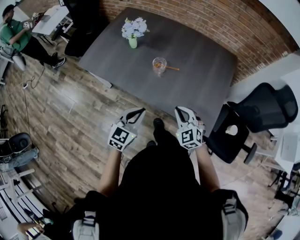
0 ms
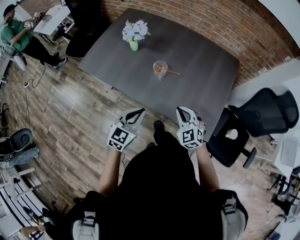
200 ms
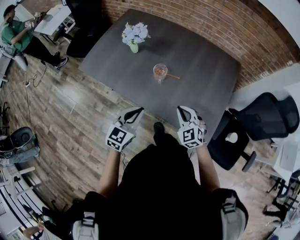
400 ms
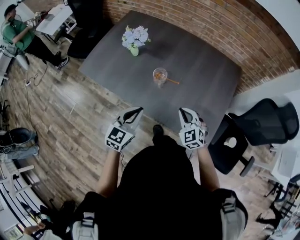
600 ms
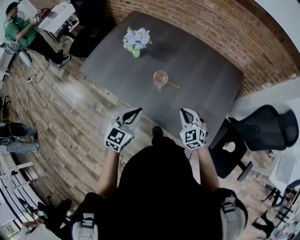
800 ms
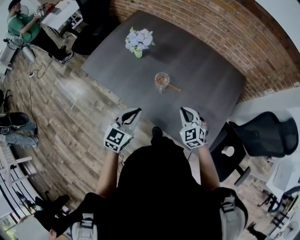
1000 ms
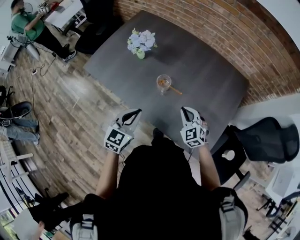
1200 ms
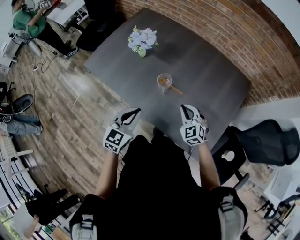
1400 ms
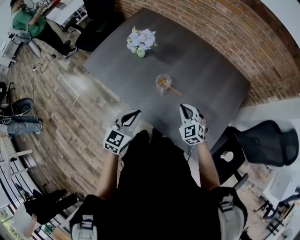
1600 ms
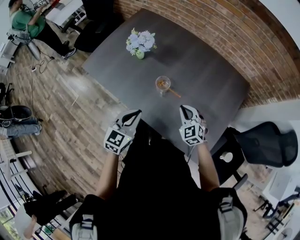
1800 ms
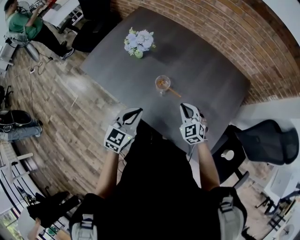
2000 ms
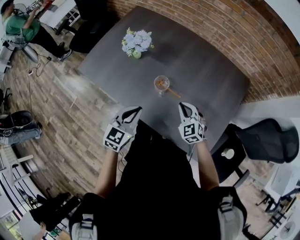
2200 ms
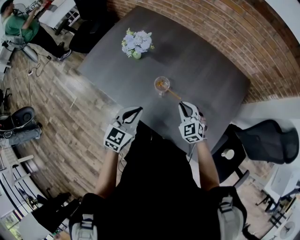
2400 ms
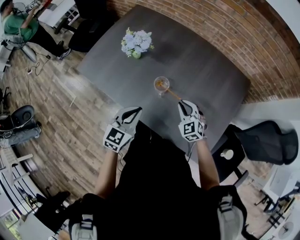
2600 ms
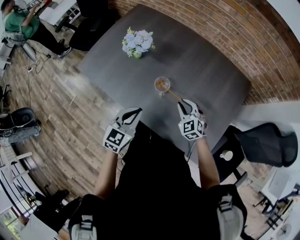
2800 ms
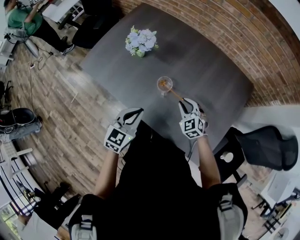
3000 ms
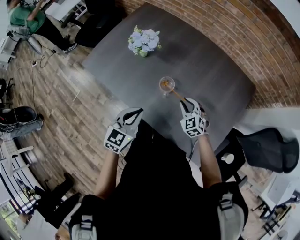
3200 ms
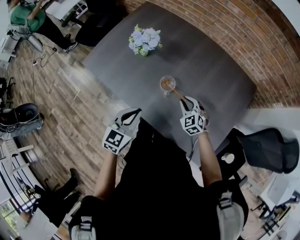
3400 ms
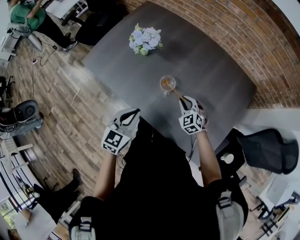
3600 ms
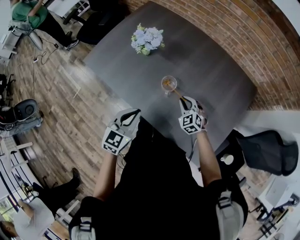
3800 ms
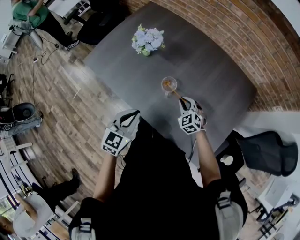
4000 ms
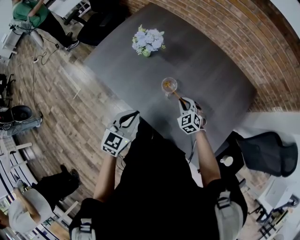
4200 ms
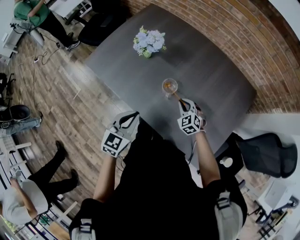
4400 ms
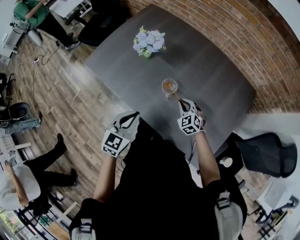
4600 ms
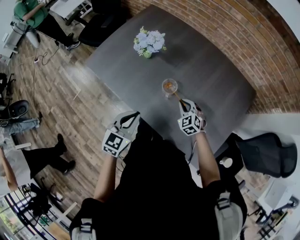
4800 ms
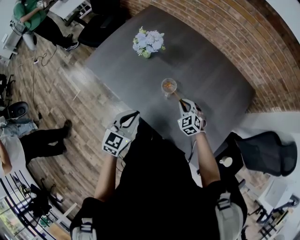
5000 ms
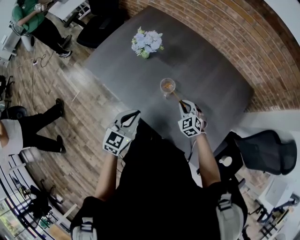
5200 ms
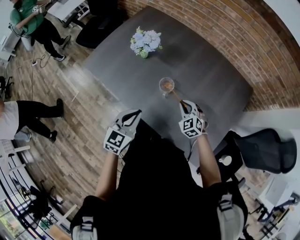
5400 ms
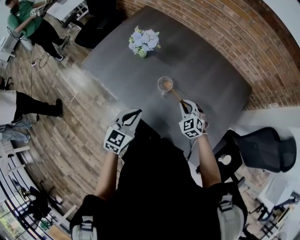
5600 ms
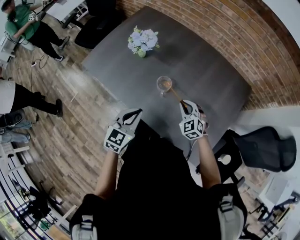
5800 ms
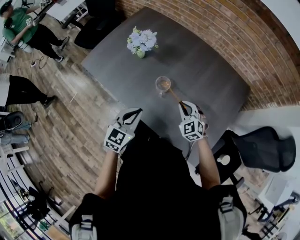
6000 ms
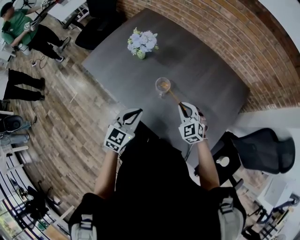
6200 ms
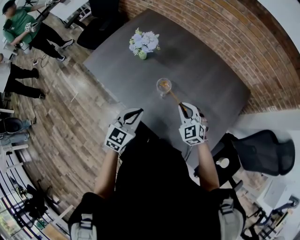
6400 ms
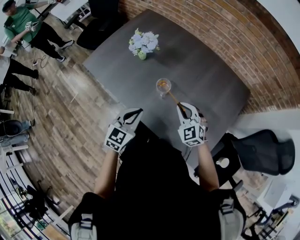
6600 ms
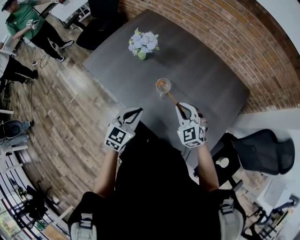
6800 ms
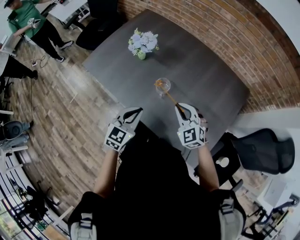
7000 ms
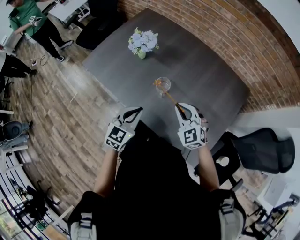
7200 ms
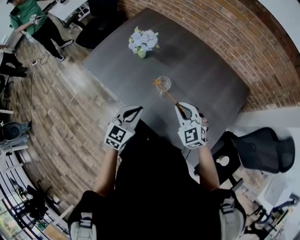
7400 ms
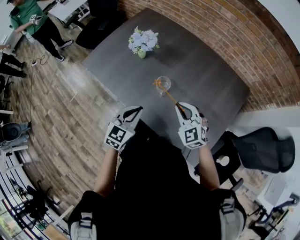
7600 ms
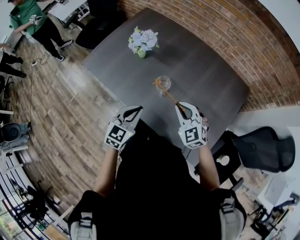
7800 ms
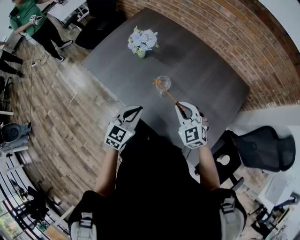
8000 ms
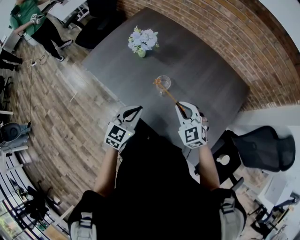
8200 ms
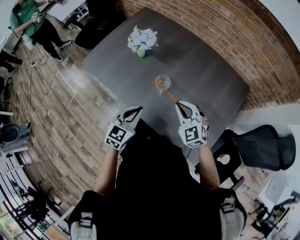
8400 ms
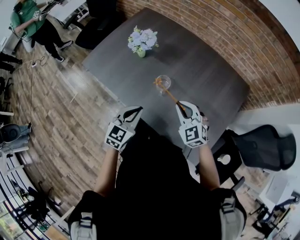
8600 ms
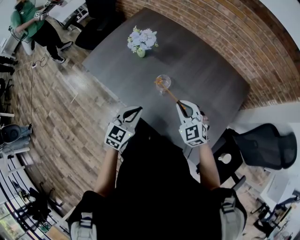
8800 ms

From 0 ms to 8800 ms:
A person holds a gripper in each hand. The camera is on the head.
From 0 ms to 1400 ms: The two grippers go some 15 cm forward.
From 1400 ms to 3000 ms: The right gripper goes approximately 5 cm forward. Meanwhile the left gripper moves approximately 5 cm.
From 3000 ms to 4400 ms: The right gripper shifts by some 5 cm.
From 4400 ms to 5800 ms: The right gripper is displaced upward by approximately 5 cm.
From 5800 ms to 7400 ms: The right gripper is displaced upward by some 10 cm.
From 7400 ms to 8800 ms: Both grippers stay put.

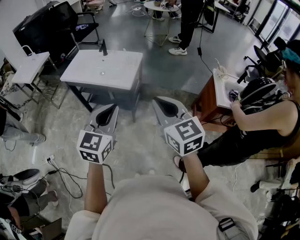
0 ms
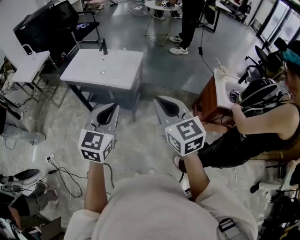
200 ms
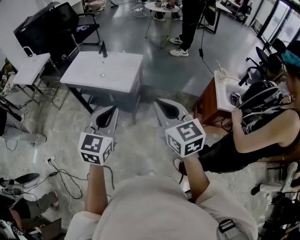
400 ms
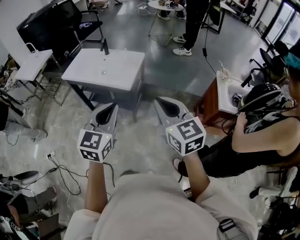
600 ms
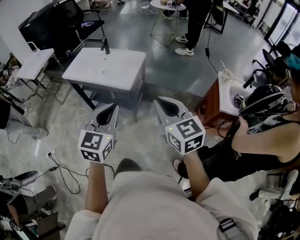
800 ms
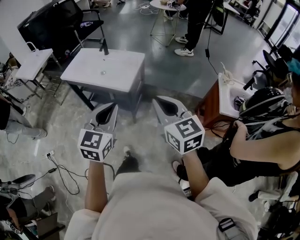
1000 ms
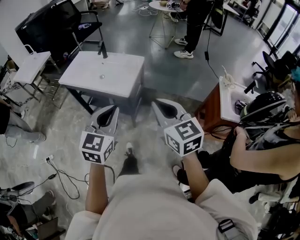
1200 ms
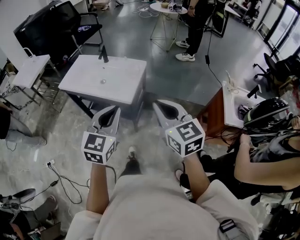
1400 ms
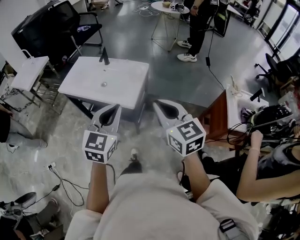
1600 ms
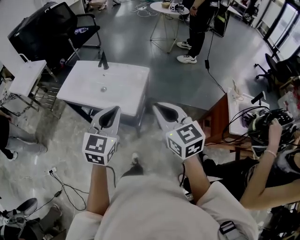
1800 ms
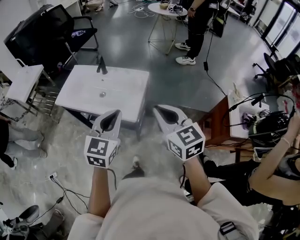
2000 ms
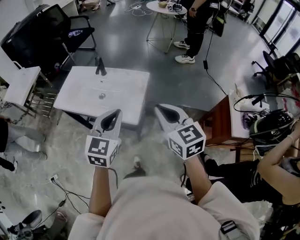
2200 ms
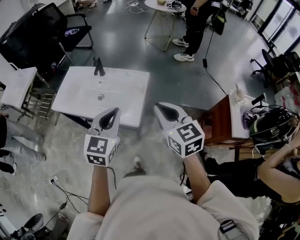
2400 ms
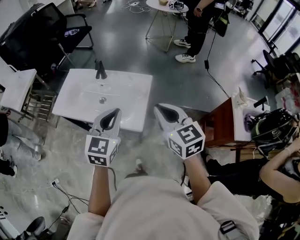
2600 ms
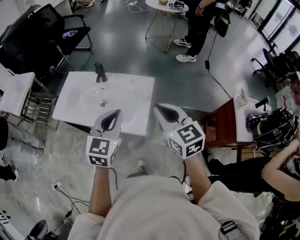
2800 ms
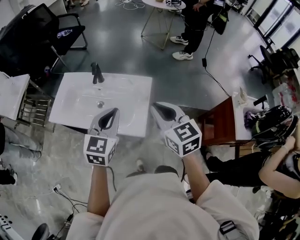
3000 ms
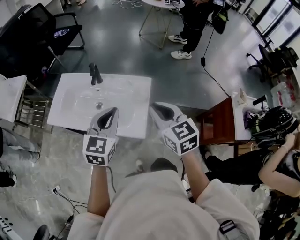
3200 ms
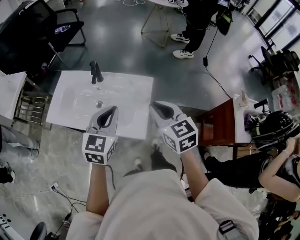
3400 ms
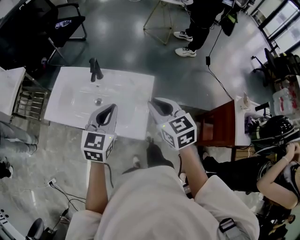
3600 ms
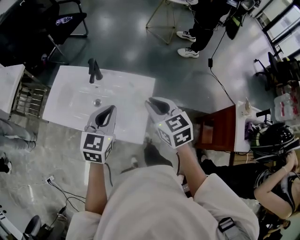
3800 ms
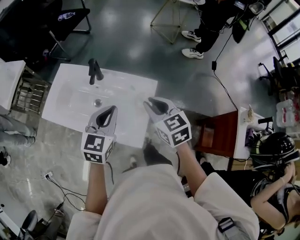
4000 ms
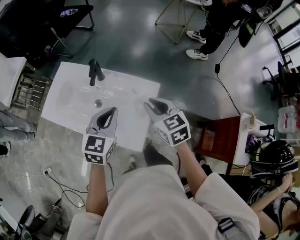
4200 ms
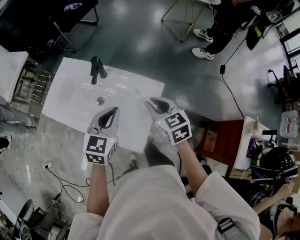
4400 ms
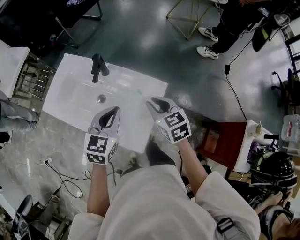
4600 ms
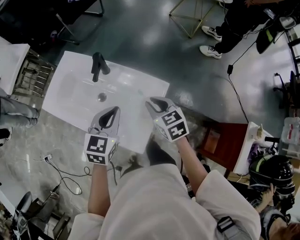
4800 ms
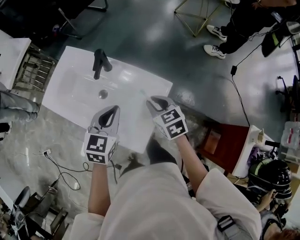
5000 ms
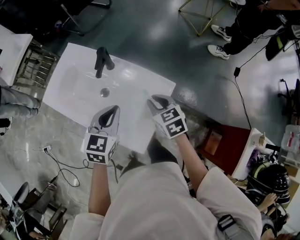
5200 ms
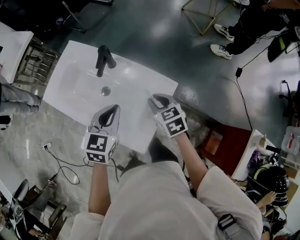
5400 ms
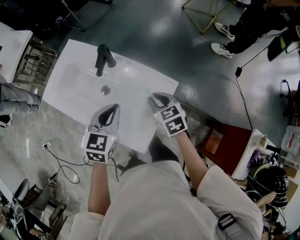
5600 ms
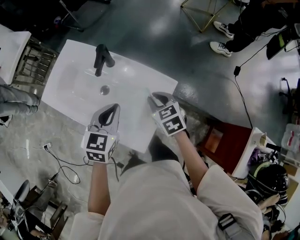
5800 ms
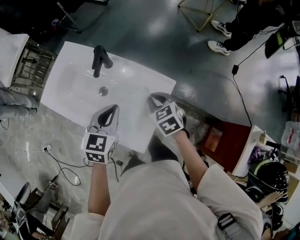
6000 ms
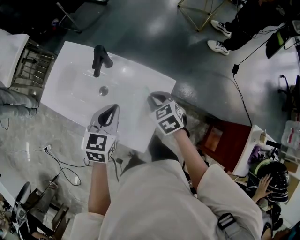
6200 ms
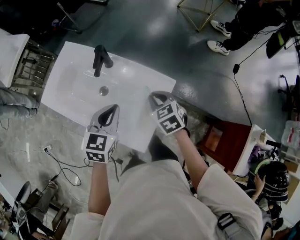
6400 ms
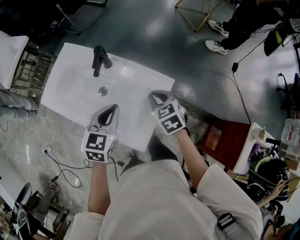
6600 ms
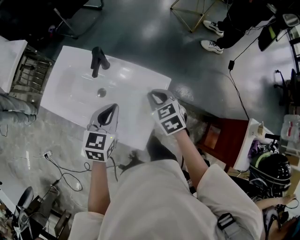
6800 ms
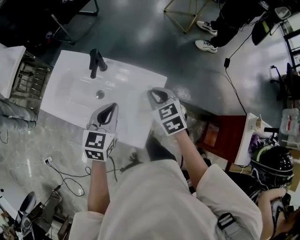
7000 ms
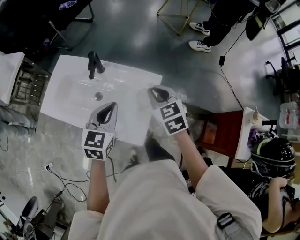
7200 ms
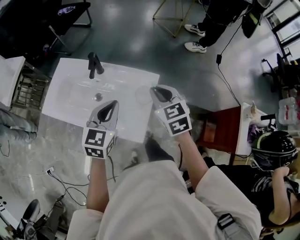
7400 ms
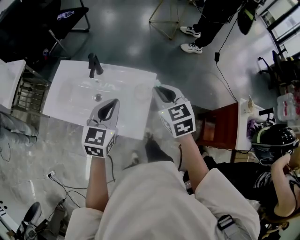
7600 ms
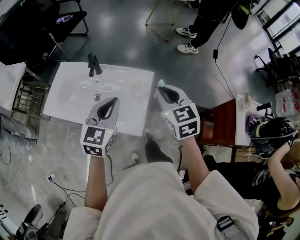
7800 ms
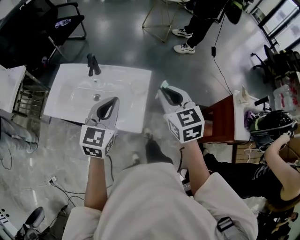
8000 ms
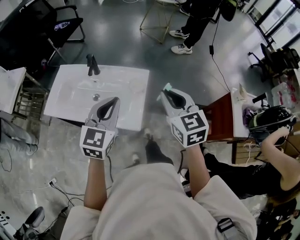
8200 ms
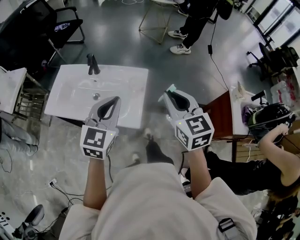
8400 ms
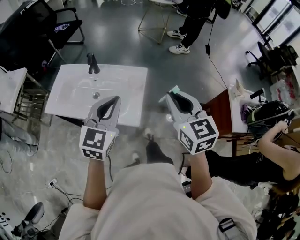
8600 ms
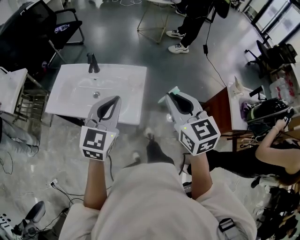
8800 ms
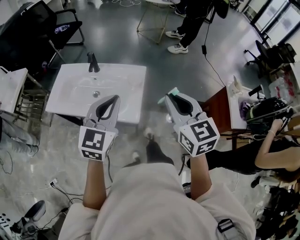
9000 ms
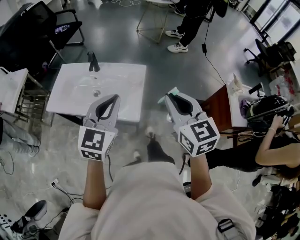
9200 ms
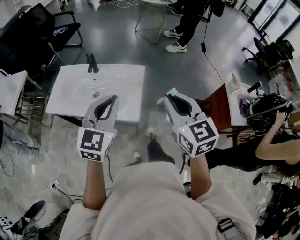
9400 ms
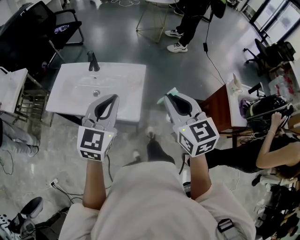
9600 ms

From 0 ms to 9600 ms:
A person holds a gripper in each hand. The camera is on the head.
From 0 ms to 1600 ms: The grippers both shift forward by approximately 20 cm.
From 1600 ms to 3200 ms: The two grippers go some 30 cm forward.
From 3200 ms to 4800 ms: Both grippers move forward and downward, about 25 cm. The right gripper swivels some 20 degrees.
From 4800 ms to 6400 ms: The right gripper moves downward, about 5 cm.
From 6400 ms to 8000 ms: The left gripper heads backward and upward, covering approximately 20 cm, and swivels approximately 30 degrees. Meanwhile the right gripper is displaced upward and backward by approximately 30 cm, and changes its angle by approximately 40 degrees.
From 8000 ms to 9600 ms: Both grippers move backward and upward, approximately 15 cm.

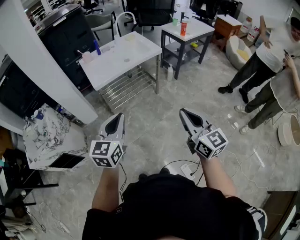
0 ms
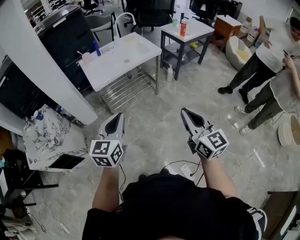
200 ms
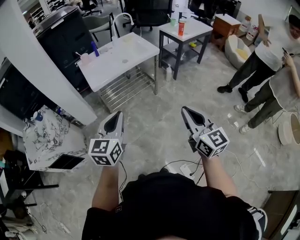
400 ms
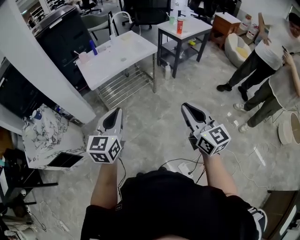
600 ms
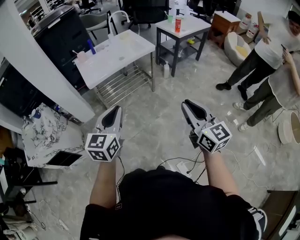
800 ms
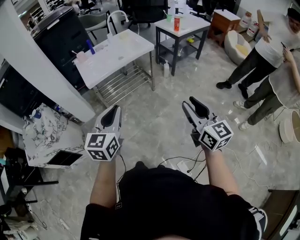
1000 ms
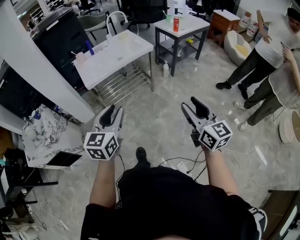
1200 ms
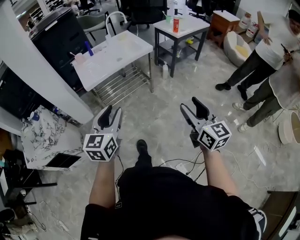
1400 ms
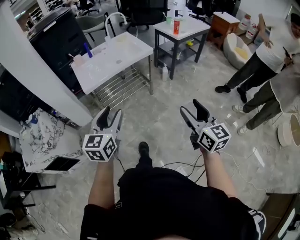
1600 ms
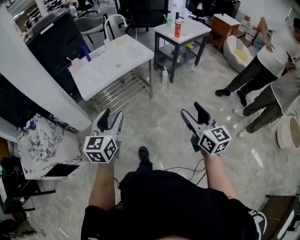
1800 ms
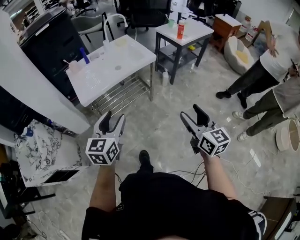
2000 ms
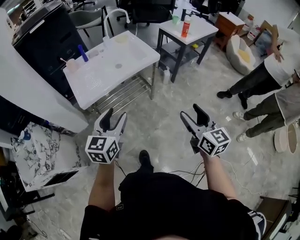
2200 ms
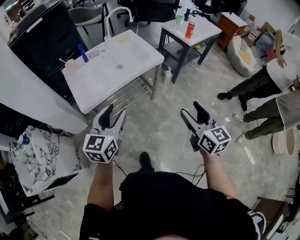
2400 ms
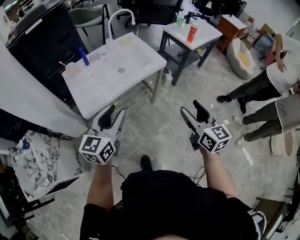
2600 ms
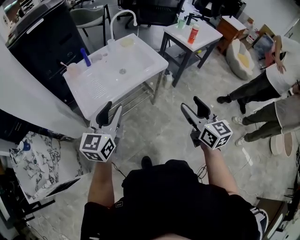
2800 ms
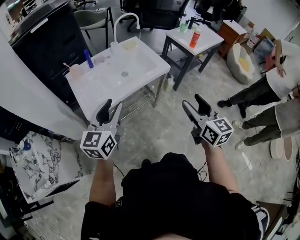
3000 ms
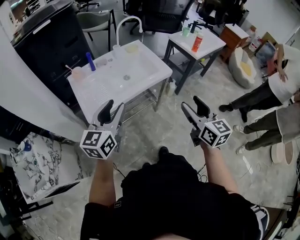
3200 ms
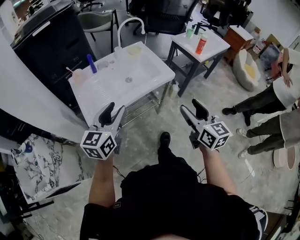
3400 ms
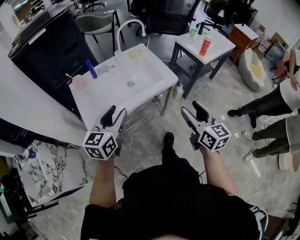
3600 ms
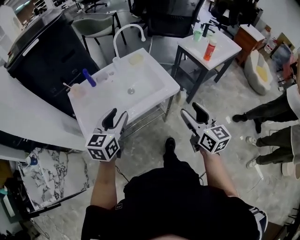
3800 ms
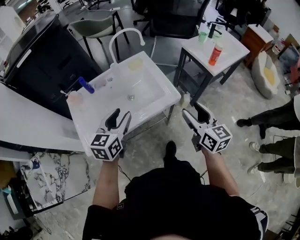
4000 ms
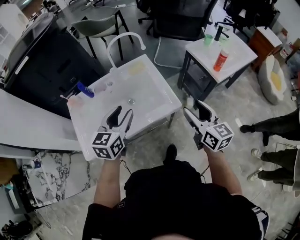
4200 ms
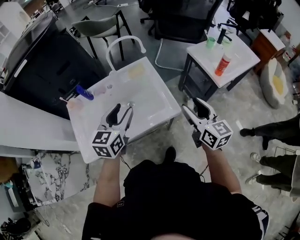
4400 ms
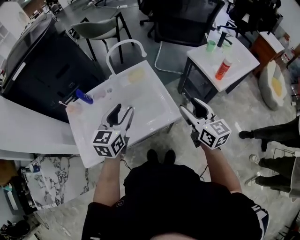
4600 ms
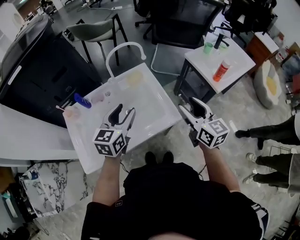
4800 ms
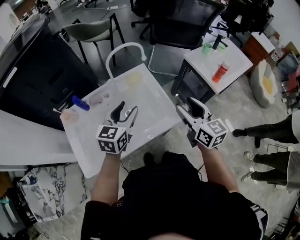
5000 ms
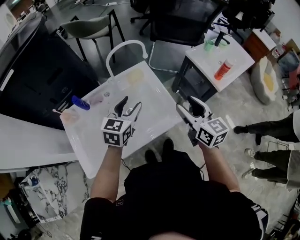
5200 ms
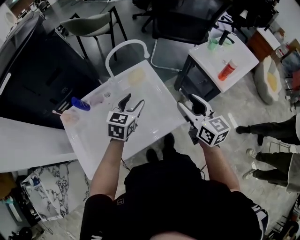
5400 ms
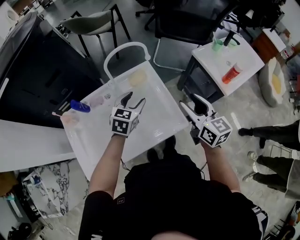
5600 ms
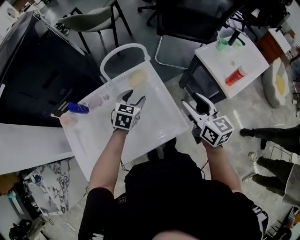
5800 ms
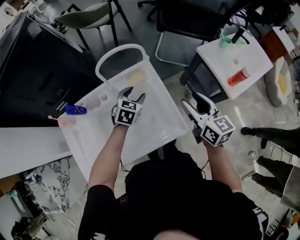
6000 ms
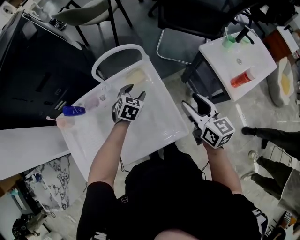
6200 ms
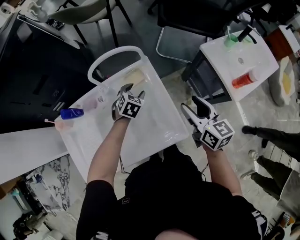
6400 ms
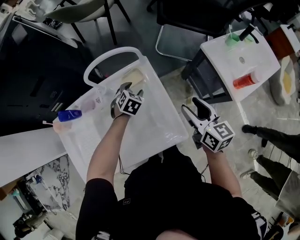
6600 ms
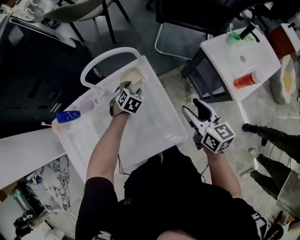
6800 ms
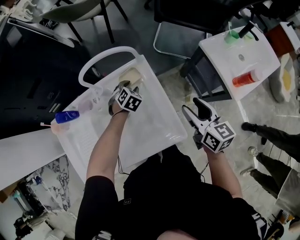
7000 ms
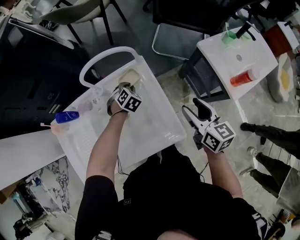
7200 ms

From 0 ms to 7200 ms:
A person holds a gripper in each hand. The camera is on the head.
From 0 ms to 1400 ms: The left gripper heads to the right, covering roughly 5 cm, and opens; the right gripper shifts about 10 cm to the right, and opens up.
From 1400 ms to 2800 ms: The grippers both shift forward by approximately 30 cm.
From 2800 ms to 4400 ms: The grippers both shift forward by about 35 cm.
From 4400 ms to 5800 ms: The left gripper travels forward and downward by roughly 25 cm, and changes its angle by about 30 degrees. The right gripper is displaced forward by about 15 cm.
From 5800 ms to 7200 ms: The right gripper is displaced downward by approximately 10 cm. Meanwhile the left gripper travels downward and forward by some 20 cm, rotates roughly 30 degrees, and closes its fingers.
